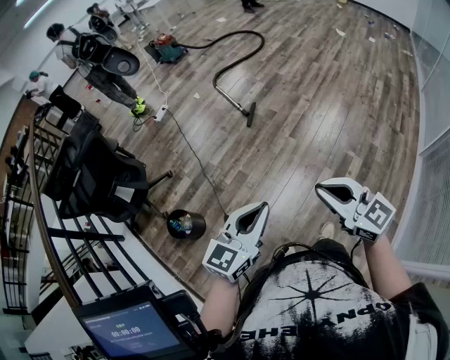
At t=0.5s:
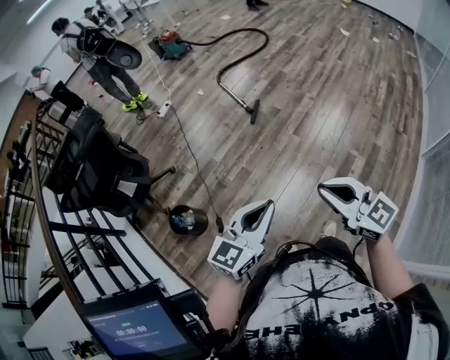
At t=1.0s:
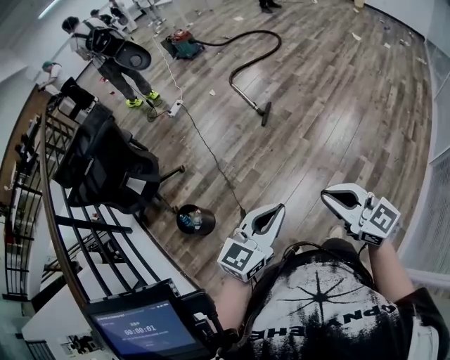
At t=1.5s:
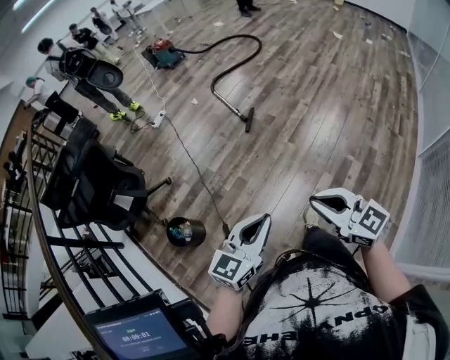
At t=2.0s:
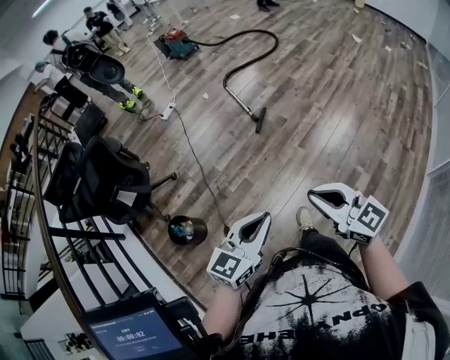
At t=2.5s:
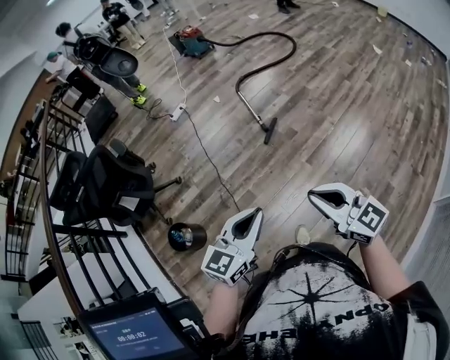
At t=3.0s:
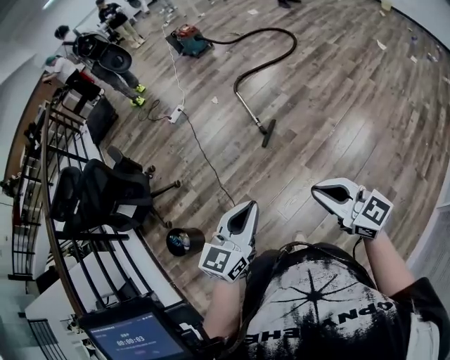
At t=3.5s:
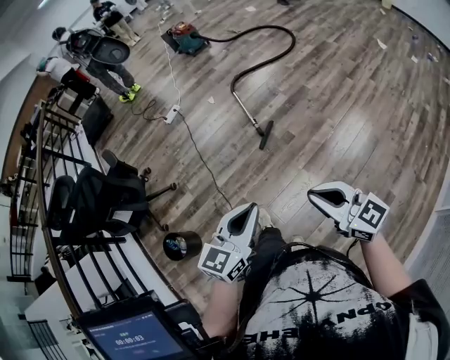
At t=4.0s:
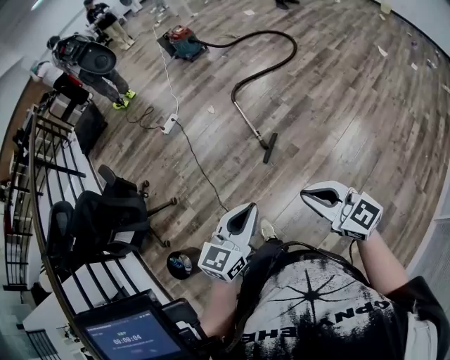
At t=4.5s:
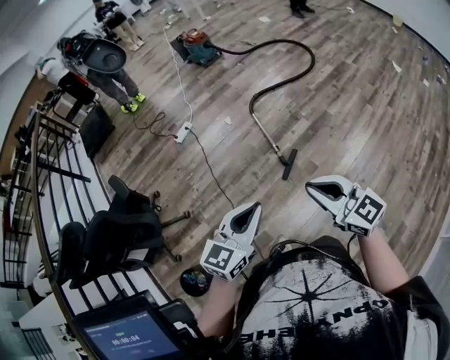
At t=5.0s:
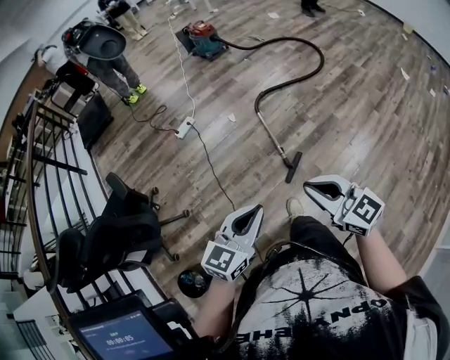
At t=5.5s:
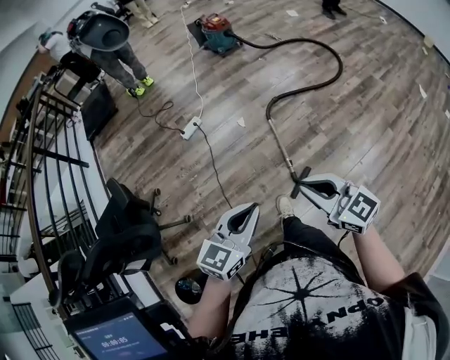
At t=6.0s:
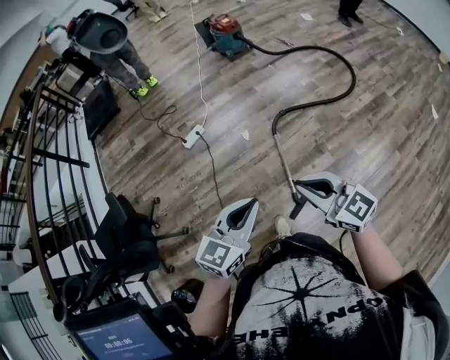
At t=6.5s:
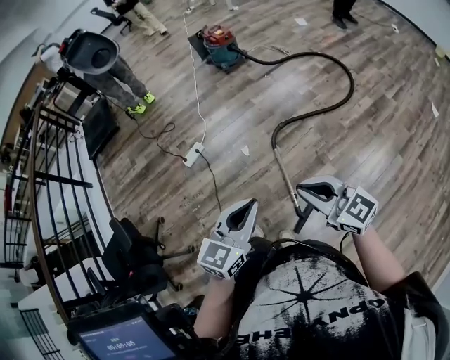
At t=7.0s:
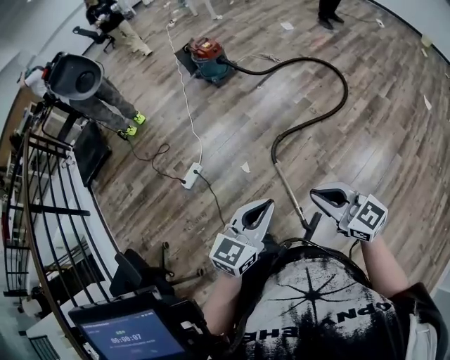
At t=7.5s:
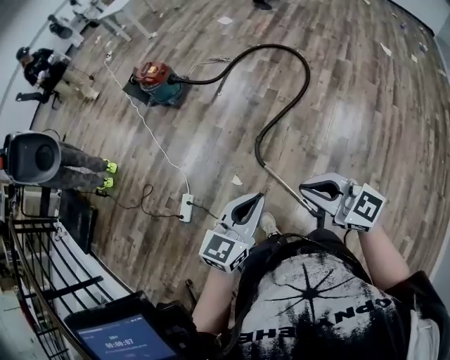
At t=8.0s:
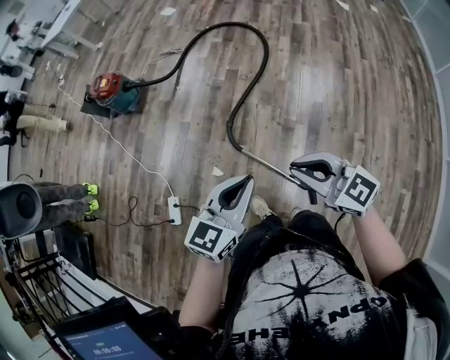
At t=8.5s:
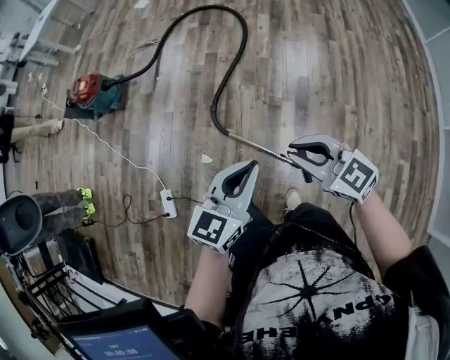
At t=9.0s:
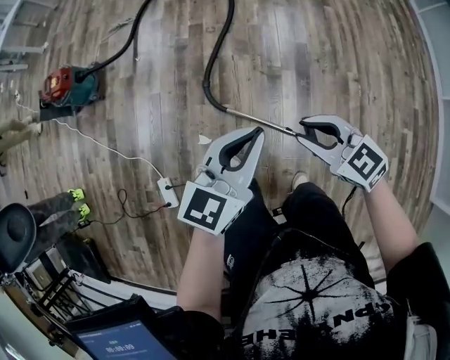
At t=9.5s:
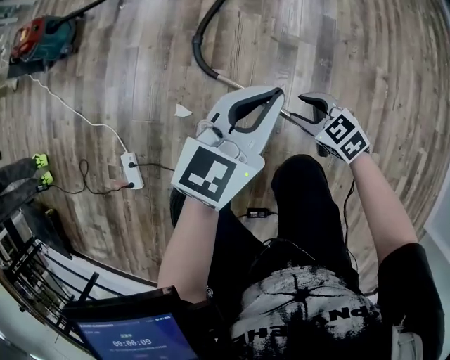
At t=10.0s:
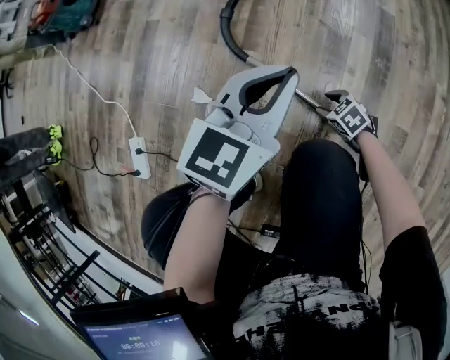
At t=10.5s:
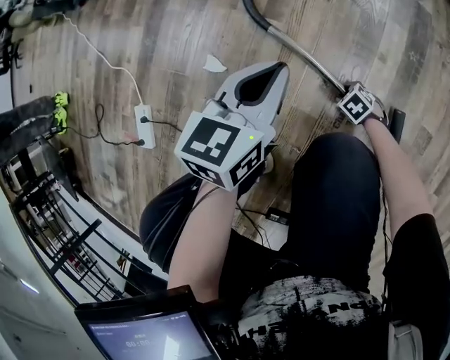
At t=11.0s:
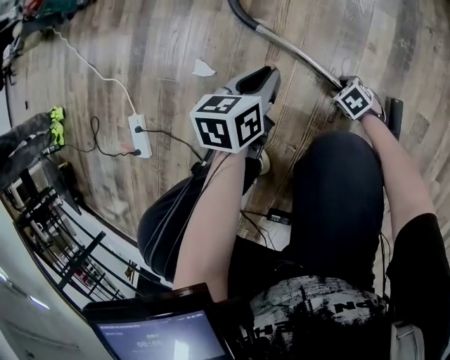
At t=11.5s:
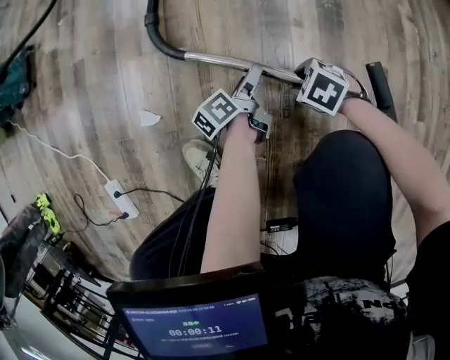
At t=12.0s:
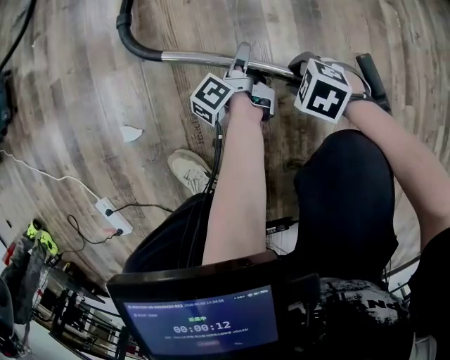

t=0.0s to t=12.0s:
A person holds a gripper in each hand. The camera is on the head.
t=0.0s to t=2.0s: Both grippers move forward, some 10 cm.
t=2.0s to t=4.0s: The two grippers go some 35 cm forward.
t=4.0s to t=6.0s: Both grippers are carried forward, approximately 60 cm.
t=6.0s to t=8.0s: The left gripper changes place by some 40 cm, and turns by roughly 50 degrees; the right gripper moves some 30 cm, and swivels approximately 40 degrees.
t=8.0s to t=10.0s: The right gripper goes approximately 90 cm downward, tips its fingers downward by some 40 degrees, and opens up, while the left gripper shifts roughly 50 cm downward.
t=10.0s to t=12.0s: The left gripper goes roughly 35 cm downward, rotates around the line of its fingers by roughly 90 degrees, counterclockwise from behind, and opens up. Meanwhile the right gripper moves about 10 cm downward and comes back.

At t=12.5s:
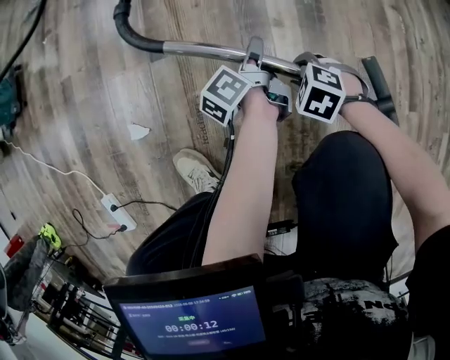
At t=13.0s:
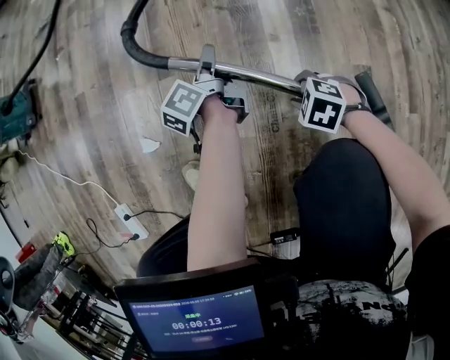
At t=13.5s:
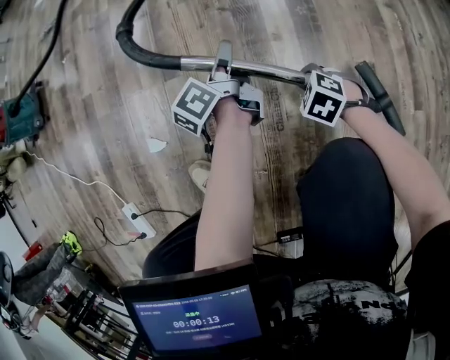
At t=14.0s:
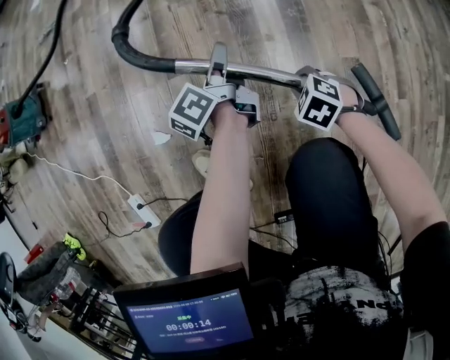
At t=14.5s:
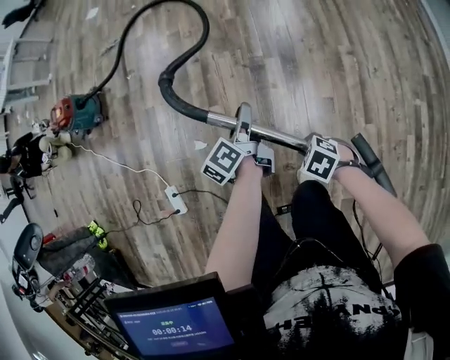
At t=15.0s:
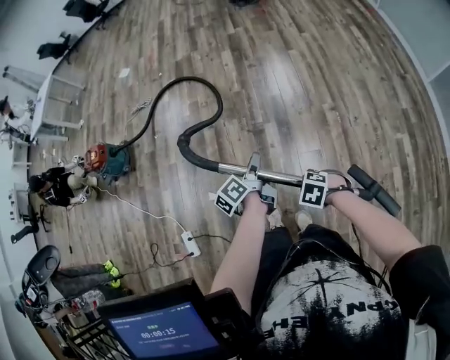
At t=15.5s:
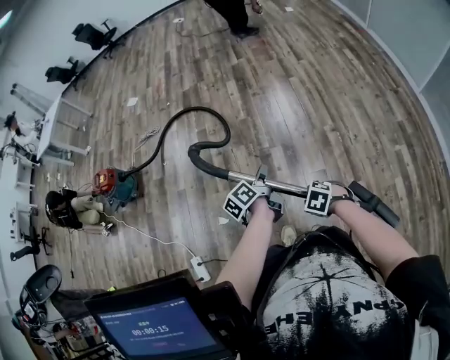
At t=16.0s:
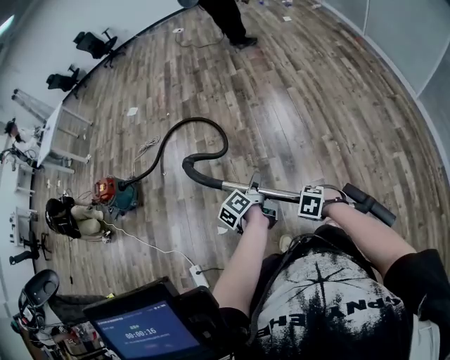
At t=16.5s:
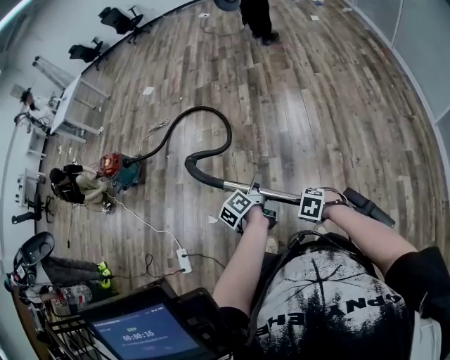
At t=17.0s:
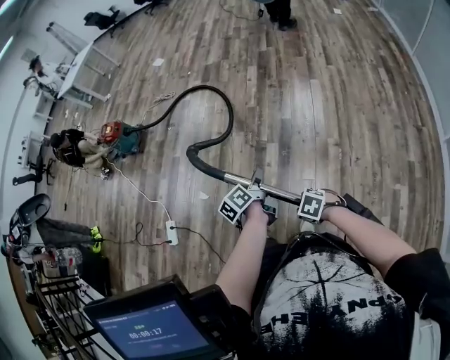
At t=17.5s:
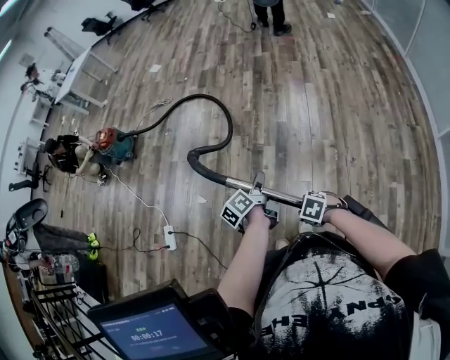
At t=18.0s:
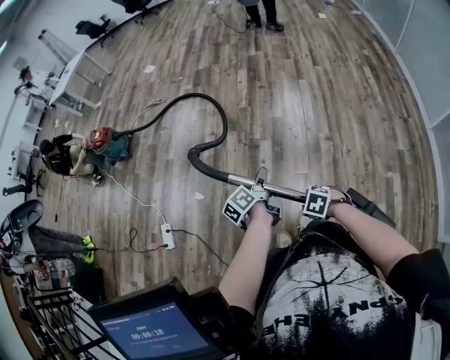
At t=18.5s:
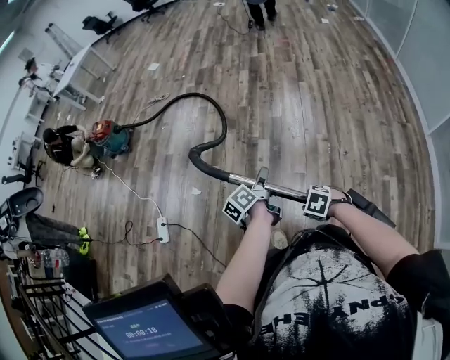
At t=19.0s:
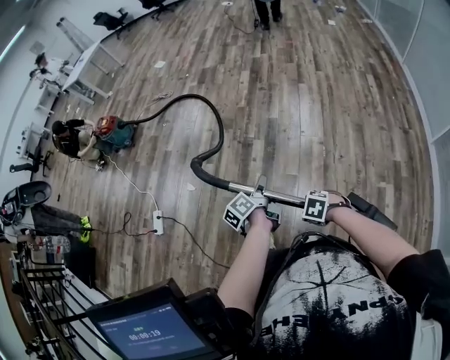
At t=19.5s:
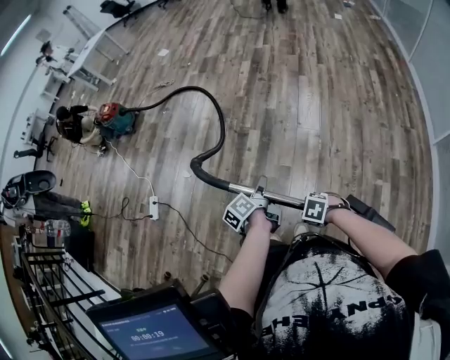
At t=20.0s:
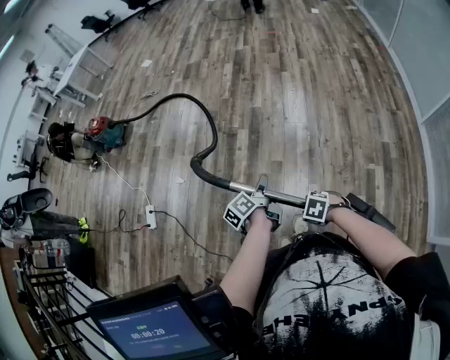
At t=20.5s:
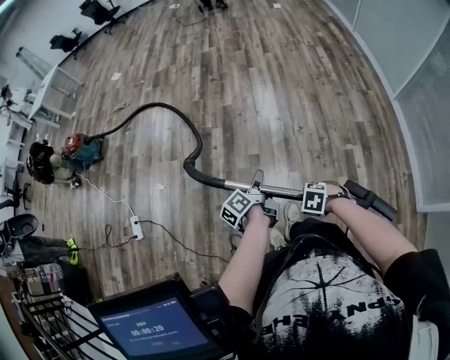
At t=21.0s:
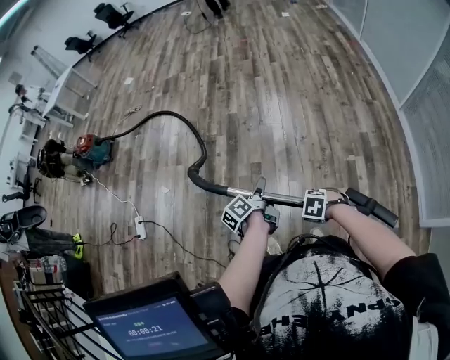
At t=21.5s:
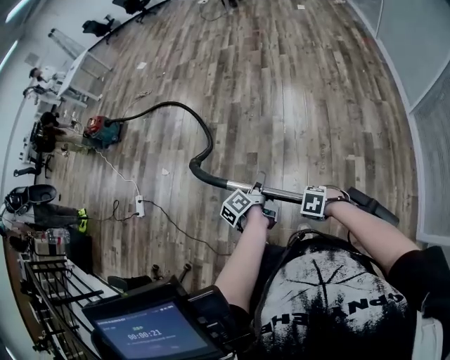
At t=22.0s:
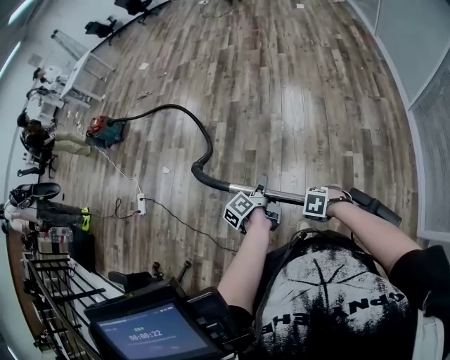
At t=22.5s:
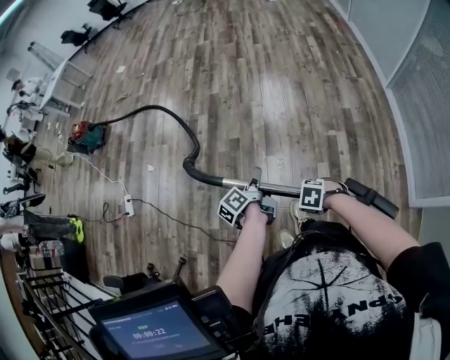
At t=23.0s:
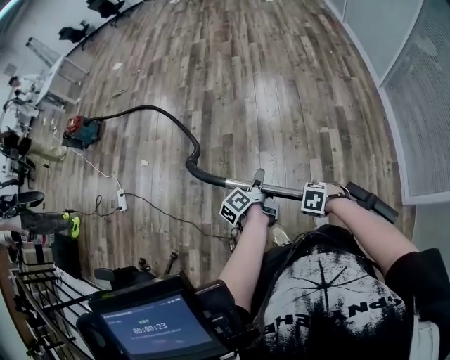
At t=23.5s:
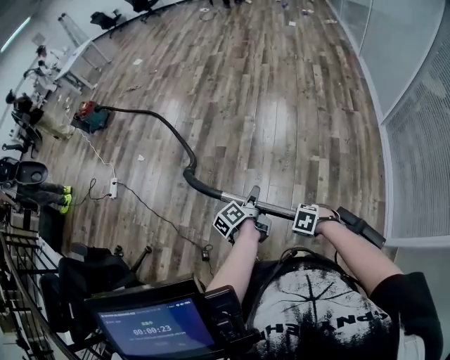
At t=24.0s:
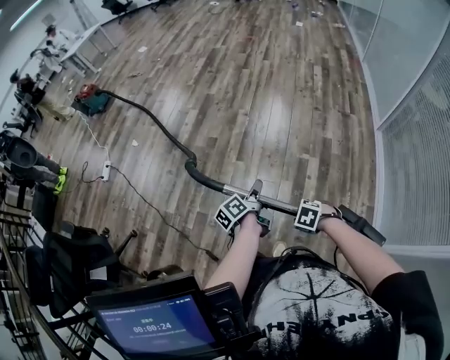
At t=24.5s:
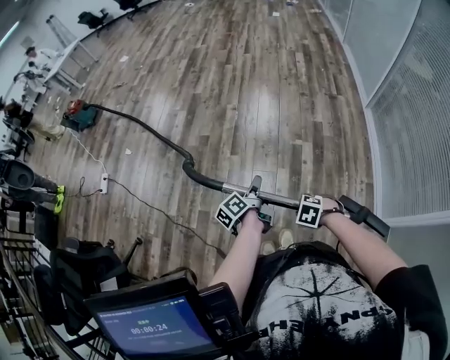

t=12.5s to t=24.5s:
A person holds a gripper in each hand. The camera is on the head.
t=12.5s to t=14.5s: Both grippers move upward, some 50 cm. The right gripper rotates about 20 degrees, and closes up.
t=14.5s to t=16.5s: Both grippers travel together upward, about 20 cm.
t=16.5s to t=18.5s: The two grippers go roughly 15 cm backward.
t=18.5s to t=20.5s: The left gripper moves approximately 30 cm; the right gripper ends up some 30 cm from where it was.
t=20.5s to t=22.5s: The right gripper ends up roughly 25 cm from where it was. The left gripper shifts by some 25 cm.
t=22.5s to t=24.5s: The left gripper changes place by about 30 cm. Meanwhile the right gripper changes place by roughly 30 cm.

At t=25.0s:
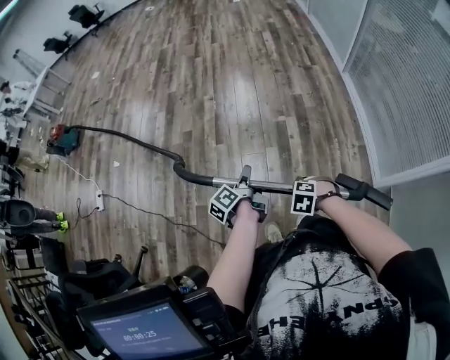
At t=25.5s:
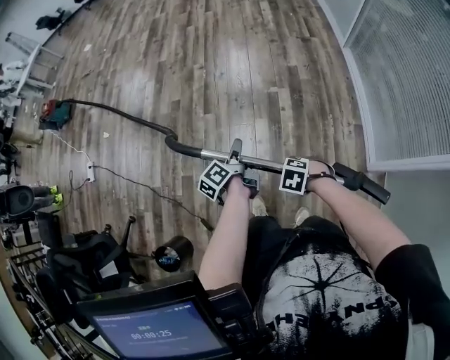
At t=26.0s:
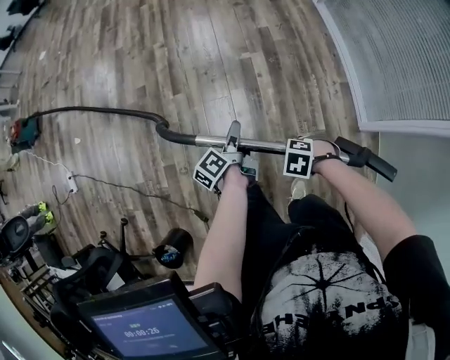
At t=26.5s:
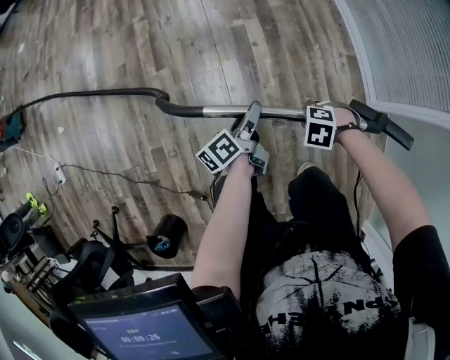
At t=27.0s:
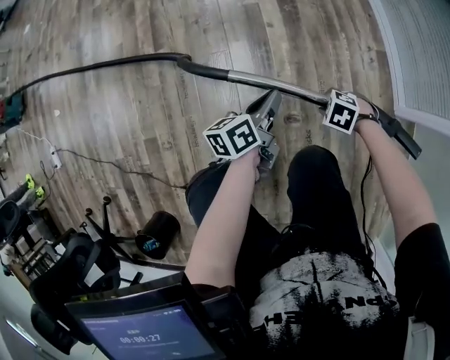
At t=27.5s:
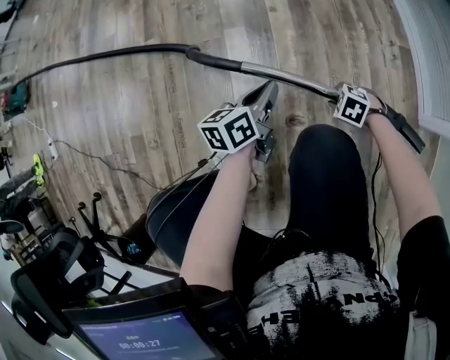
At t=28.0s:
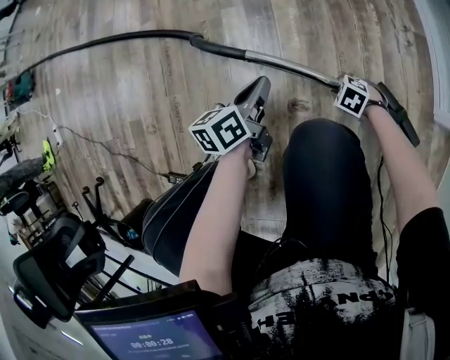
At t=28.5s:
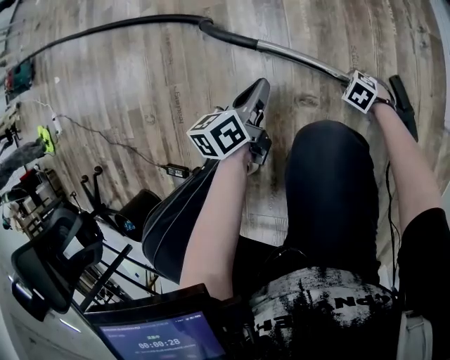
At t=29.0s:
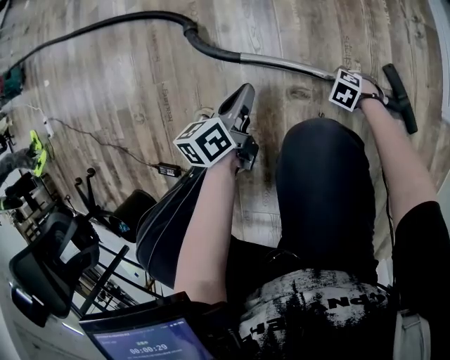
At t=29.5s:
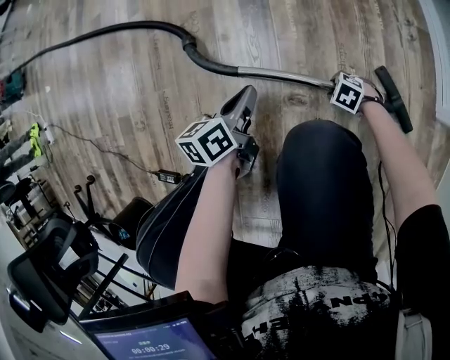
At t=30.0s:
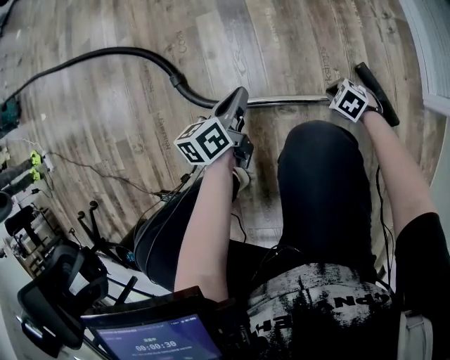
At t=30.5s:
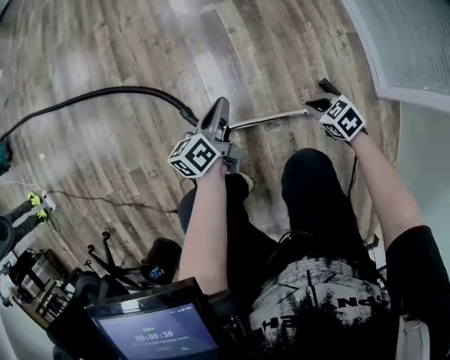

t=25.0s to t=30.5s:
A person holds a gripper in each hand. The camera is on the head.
t=25.0s to t=27.0s: Both grippers move downward, about 35 cm. The left gripper changes its angle by roughly 40 degrees, and opens and closes again.
t=27.0s to t=28.5s: The two grippers go some 25 cm downward.
t=28.5s to t=30.5s: The right gripper moves upward, about 30 cm, turns by some 30 degrees, and opens, then closes once more, while the left gripper moves upward, approximately 20 cm.
